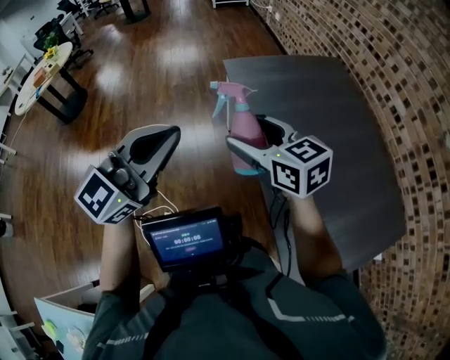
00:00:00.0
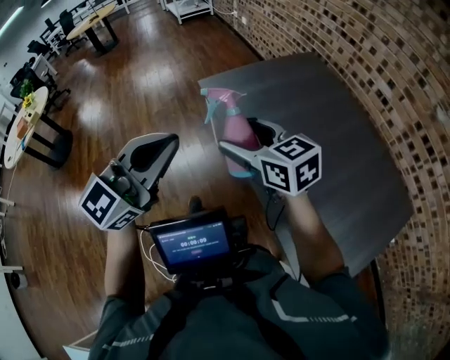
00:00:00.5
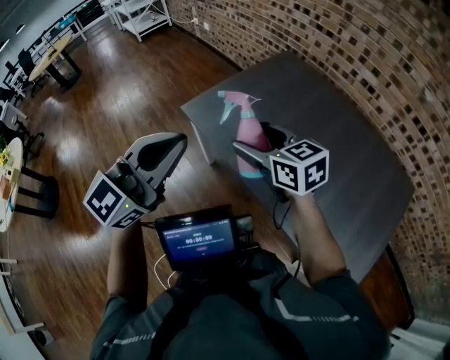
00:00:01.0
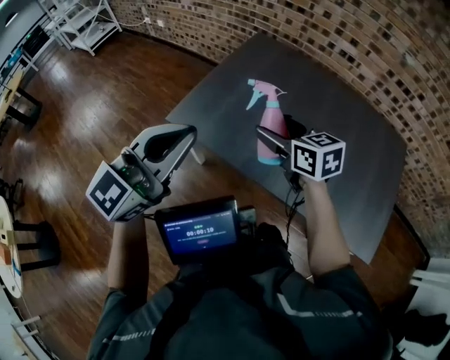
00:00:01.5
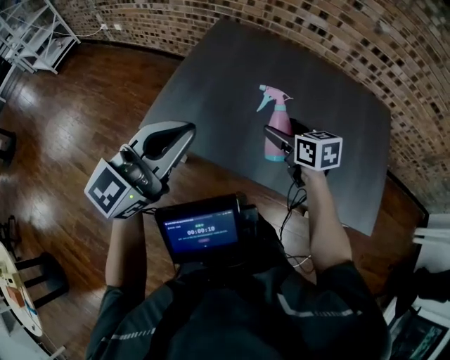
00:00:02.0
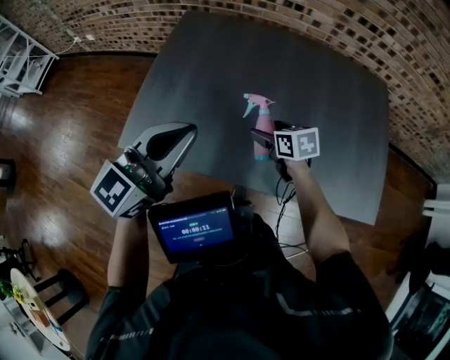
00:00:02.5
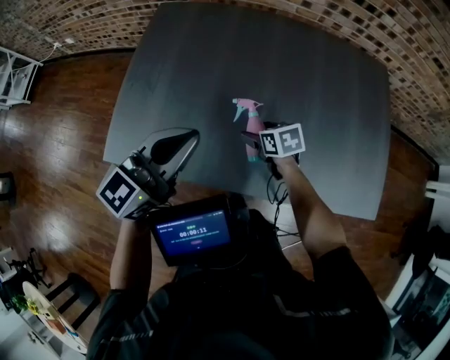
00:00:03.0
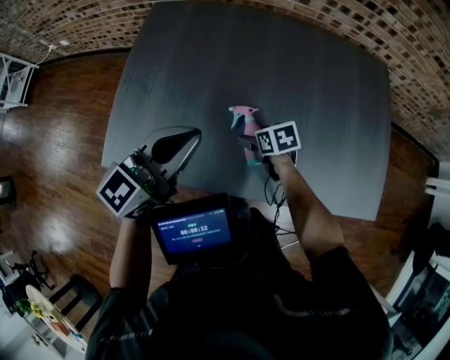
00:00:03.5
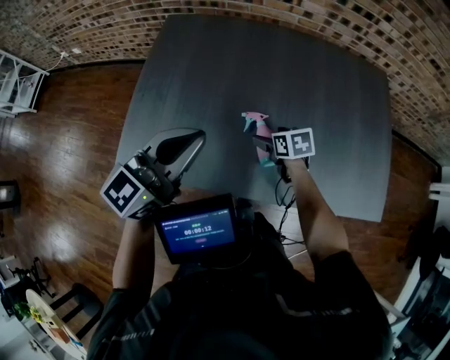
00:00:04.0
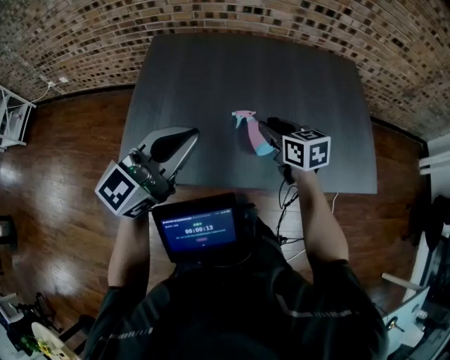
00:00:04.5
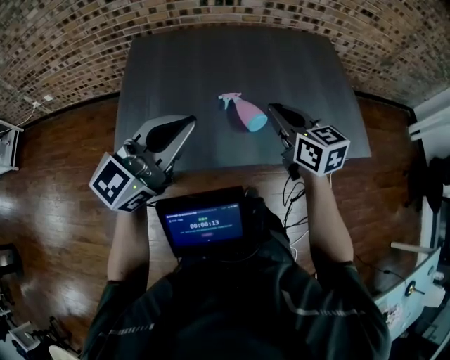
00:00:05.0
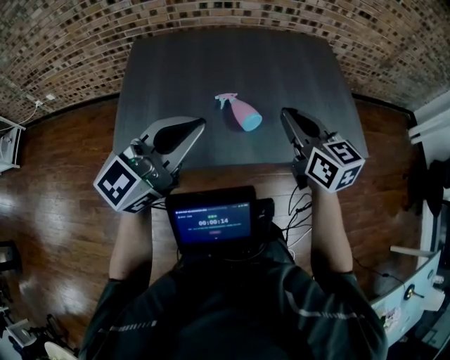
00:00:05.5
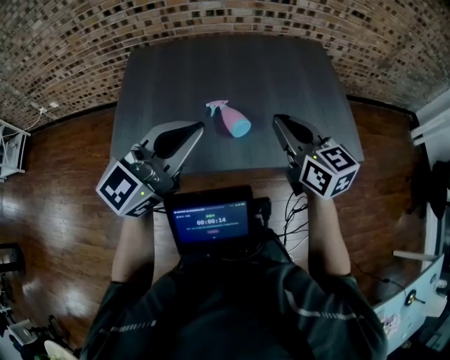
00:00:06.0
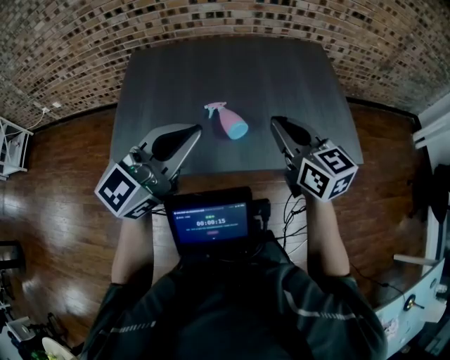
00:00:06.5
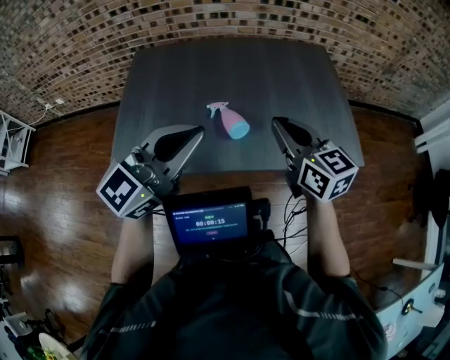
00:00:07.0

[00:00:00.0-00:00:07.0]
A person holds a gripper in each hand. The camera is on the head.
00:00:00.0 to 00:00:02.0: The right gripper ends up roughly 30 cm from where it was, and turns by roughly 70 degrees. Meanwhile the left gripper shifts by about 40 cm, and swivels approximately 50 degrees.
00:00:02.0 to 00:00:03.5: The left gripper travels forward, to the right and downward by approximately 25 cm. The right gripper heads downward, covering some 20 cm, and changes its angle by about 30 degrees.
00:00:03.5 to 00:00:05.0: The left gripper moves some 20 cm, and changes its angle by roughly 20 degrees; the right gripper moves upward, approximately 30 cm, tips its fingers upward by some 40 degrees, and closes up.
00:00:05.0 to 00:00:07.0: The right gripper moves to the right and upward, about 10 cm; the left gripper goes approximately 10 cm to the right.

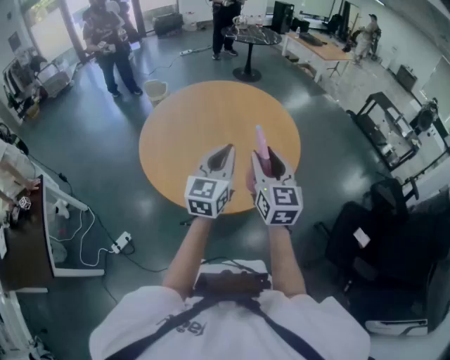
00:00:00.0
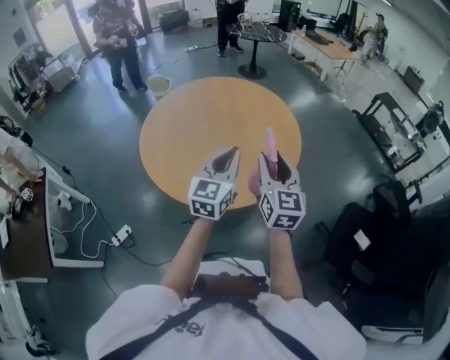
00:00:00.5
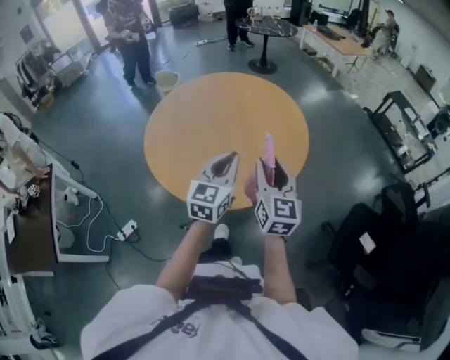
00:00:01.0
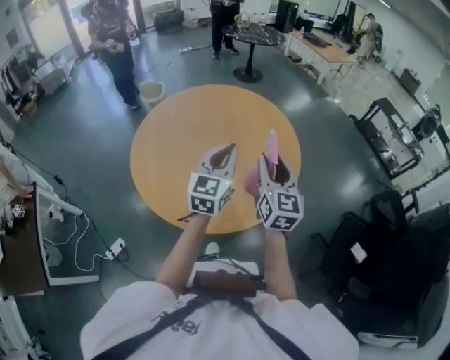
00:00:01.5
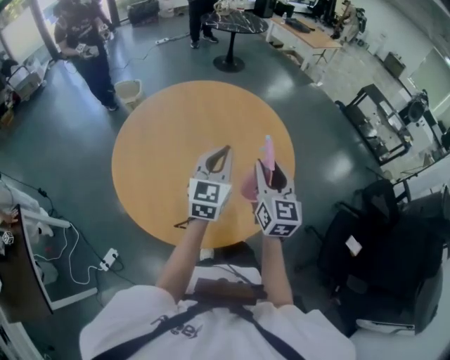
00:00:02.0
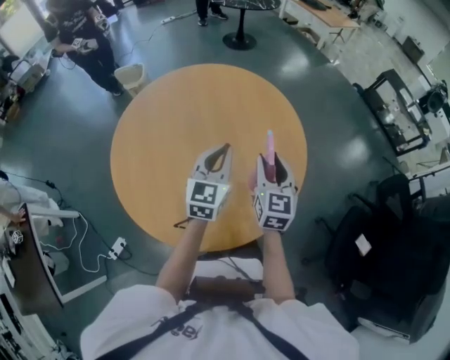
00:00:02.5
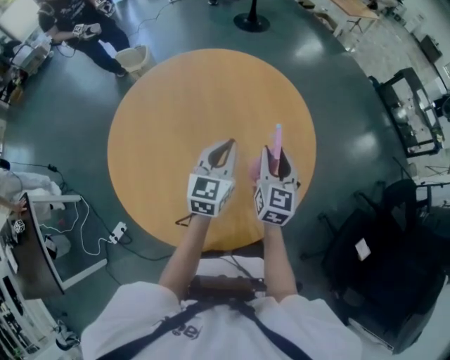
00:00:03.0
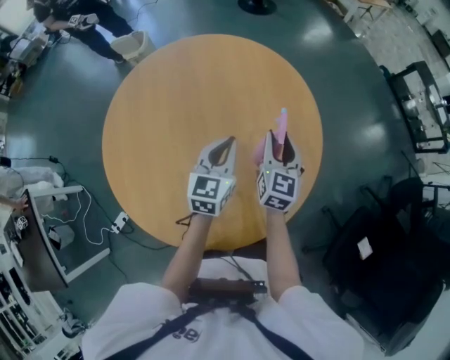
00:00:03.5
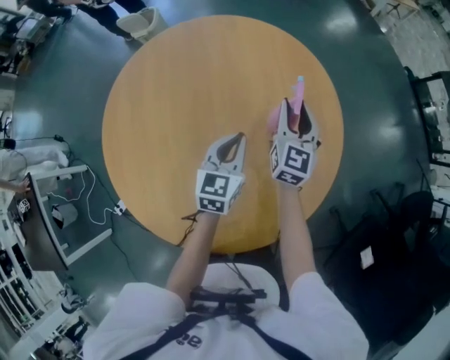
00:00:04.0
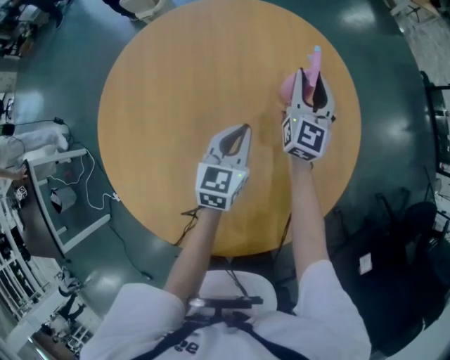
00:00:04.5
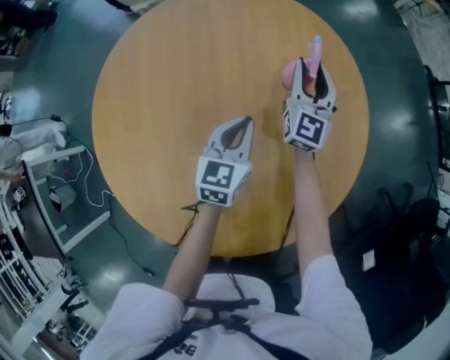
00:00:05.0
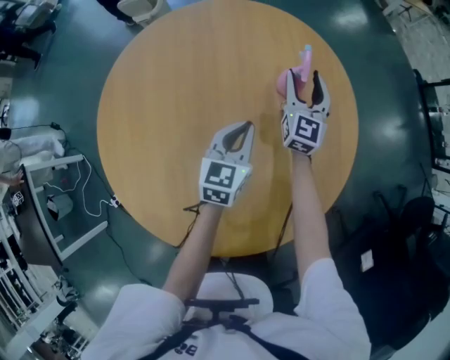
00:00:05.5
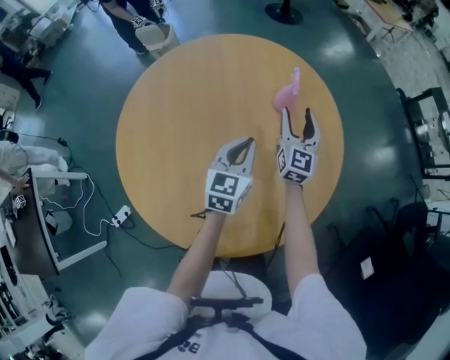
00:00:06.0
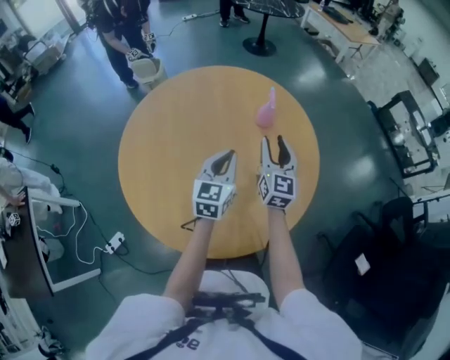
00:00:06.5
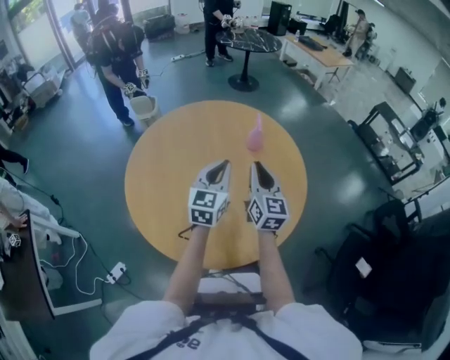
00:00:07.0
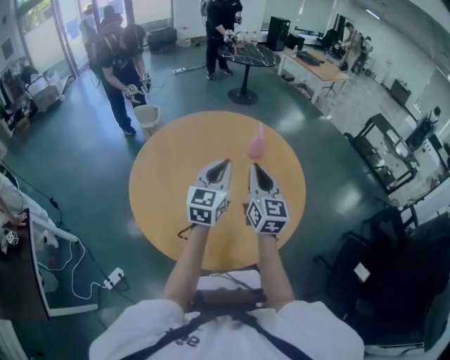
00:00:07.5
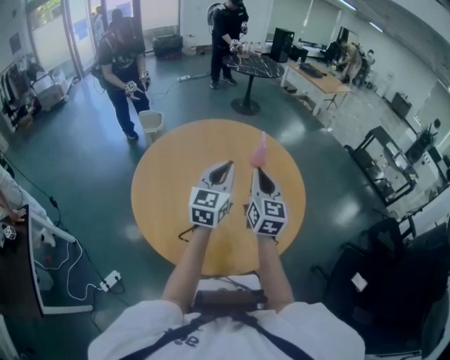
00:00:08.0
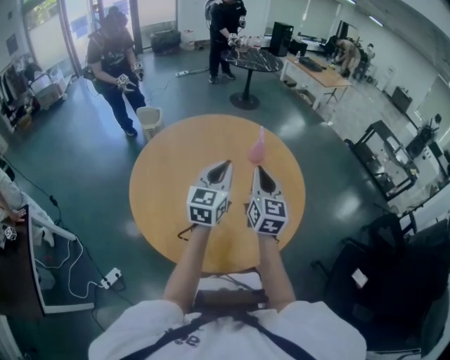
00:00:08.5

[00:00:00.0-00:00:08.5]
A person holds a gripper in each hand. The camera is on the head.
00:00:00.0 to 00:00:02.0: Both grippers travel together forward, about 15 cm.
00:00:02.0 to 00:00:04.0: The left gripper heads downward and forward, covering about 20 cm, and turns by some 20 degrees. Meanwhile the right gripper heads forward and downward, covering approximately 30 cm.
00:00:04.0 to 00:00:06.5: The right gripper goes about 10 cm backward and upward. The left gripper goes roughly 10 cm upward and backward.
00:00:06.5 to 00:00:08.5: The right gripper is displaced backward and upward by roughly 15 cm, and closes. The left gripper shifts about 10 cm upward.

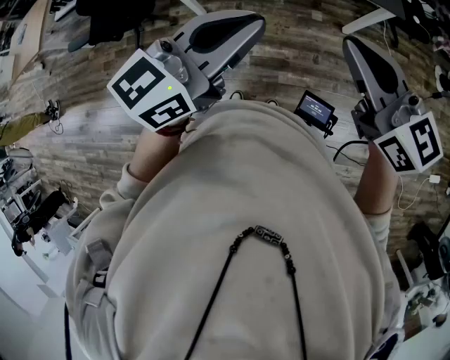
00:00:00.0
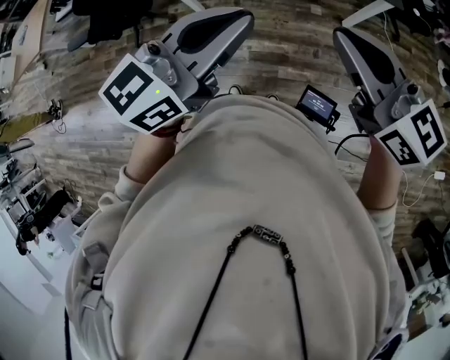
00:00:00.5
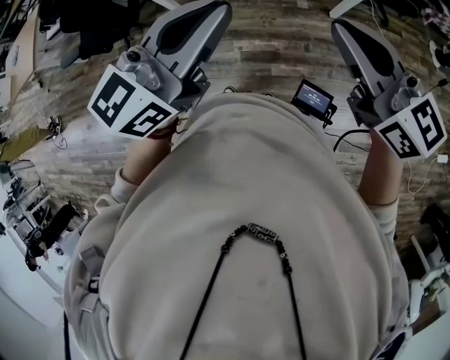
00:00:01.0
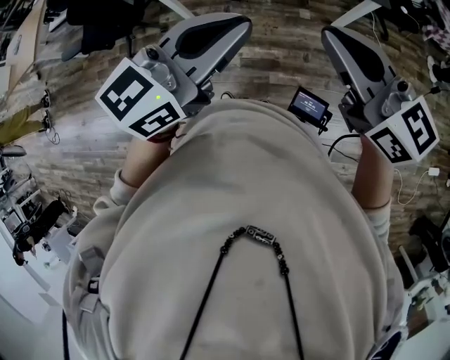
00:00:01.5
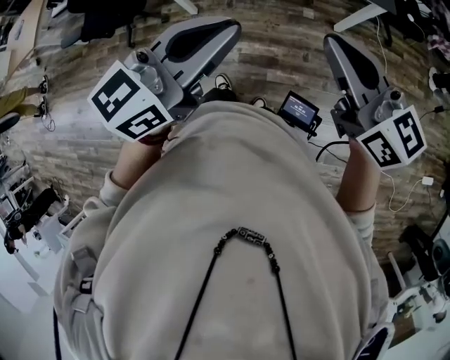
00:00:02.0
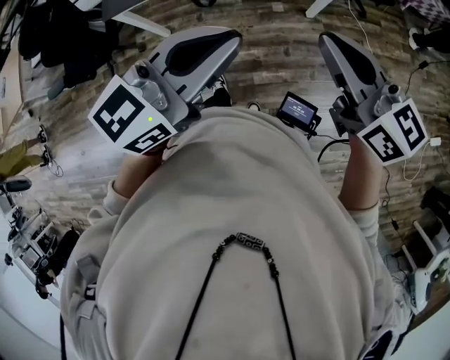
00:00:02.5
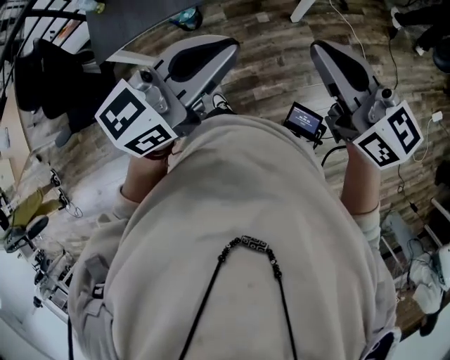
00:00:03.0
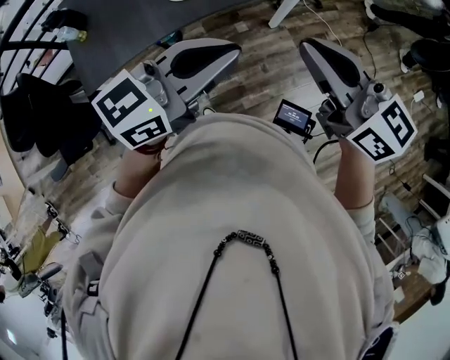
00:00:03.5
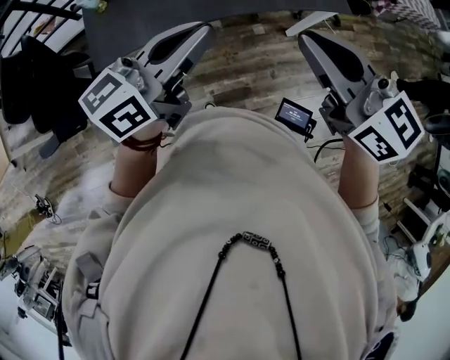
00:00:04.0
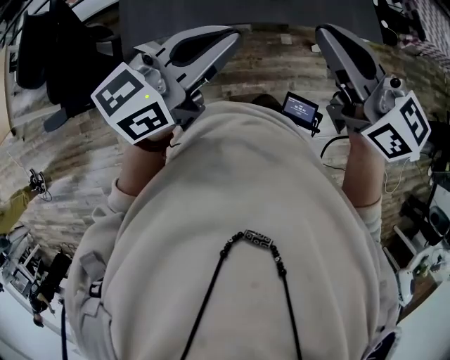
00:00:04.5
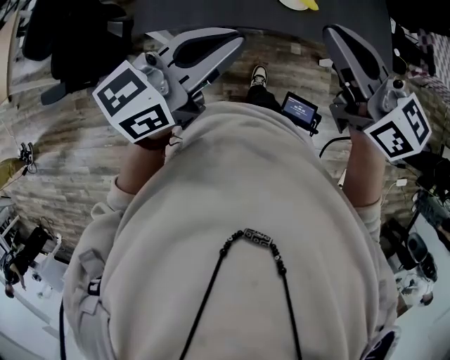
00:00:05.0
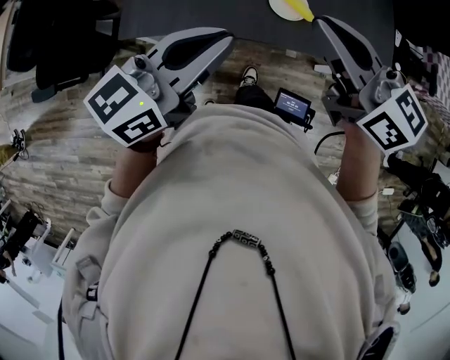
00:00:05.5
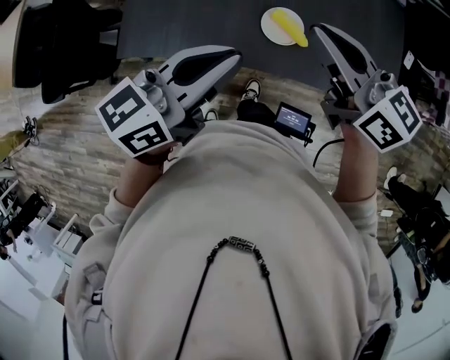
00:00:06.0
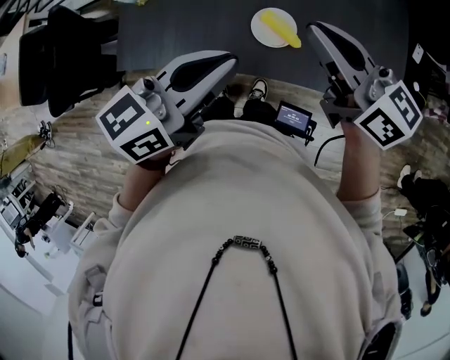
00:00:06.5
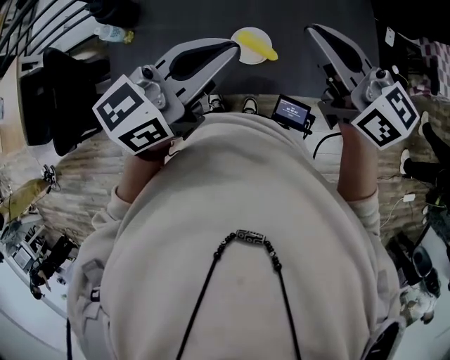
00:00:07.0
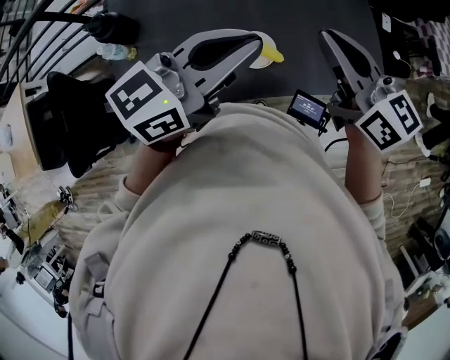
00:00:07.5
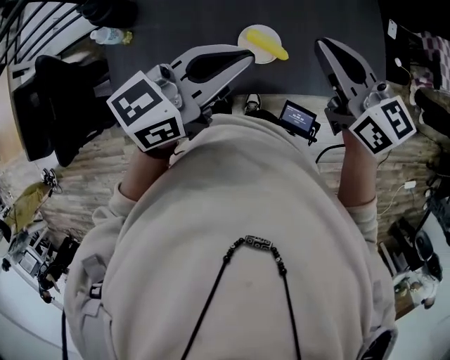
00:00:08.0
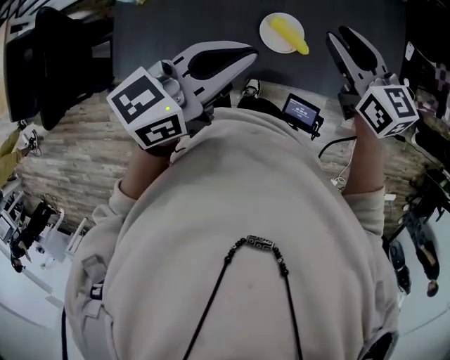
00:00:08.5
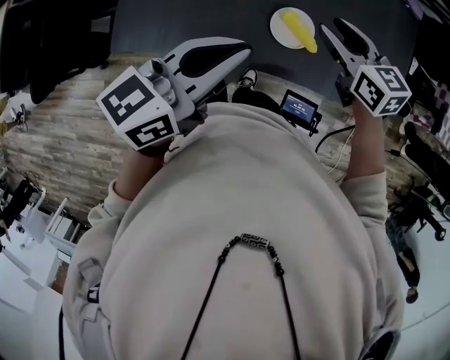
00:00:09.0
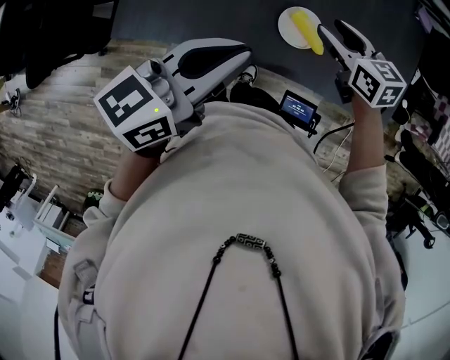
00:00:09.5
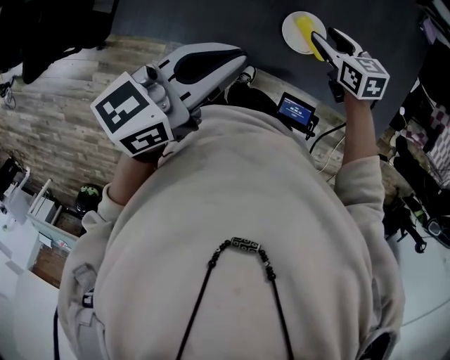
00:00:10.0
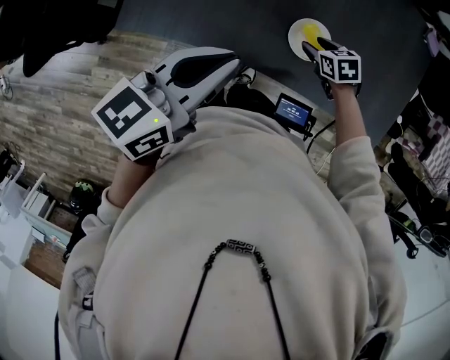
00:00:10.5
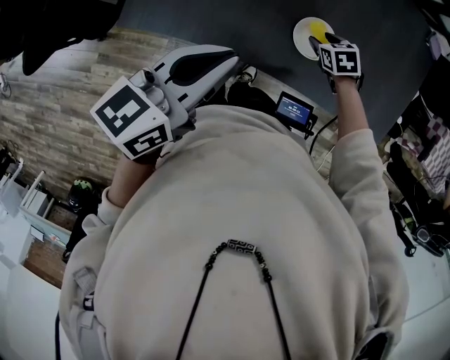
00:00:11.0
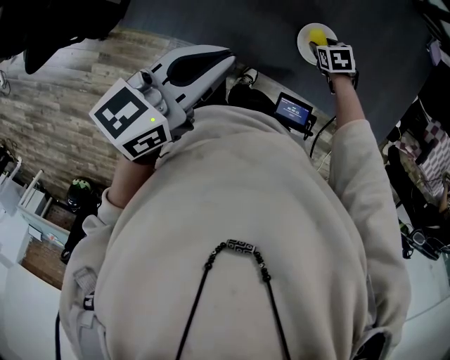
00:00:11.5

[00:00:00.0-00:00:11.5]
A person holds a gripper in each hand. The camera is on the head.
00:00:00.0 to 00:00:02.0: The grippers make only small movements.
00:00:02.0 to 00:00:04.0: The left gripper changes place by about 10 cm; the right gripper moves about 10 cm.
00:00:04.0 to 00:00:06.0: The right gripper goes backward and returns, some 25 cm each way. The left gripper heads backward and upward, covering approximately 15 cm.
00:00:06.0 to 00:00:07.5: The left gripper is displaced upward and to the right by roughly 10 cm, and changes its angle by roughly 20 degrees. Meanwhile the right gripper moves to the right, some 10 cm, and turns by some 20 degrees.
00:00:07.5 to 00:00:09.5: The left gripper travels to the left, downward and backward by roughly 15 cm, and rotates some 30 degrees, while the right gripper shifts roughly 20 cm downward and to the left, points its fingers roughly 30 degrees further downward, and opens its fingers.
00:00:09.5 to 00:00:11.5: The left gripper changes place by approximately 10 cm. Meanwhile the right gripper shifts approximately 25 cm downward, and angles its fingers downward, by approximately 40 degrees.
